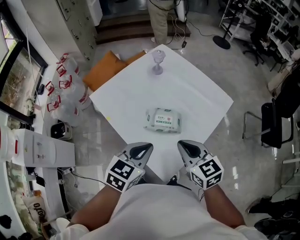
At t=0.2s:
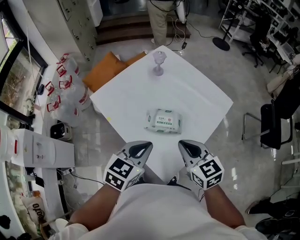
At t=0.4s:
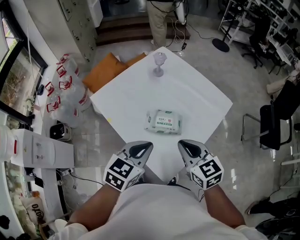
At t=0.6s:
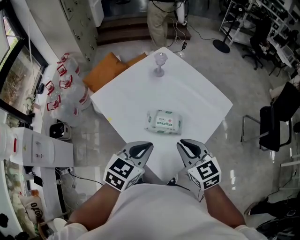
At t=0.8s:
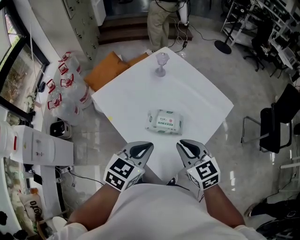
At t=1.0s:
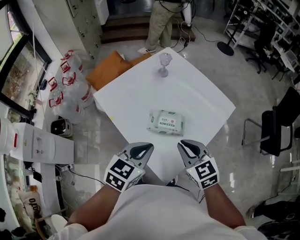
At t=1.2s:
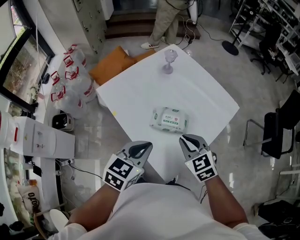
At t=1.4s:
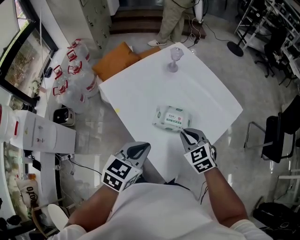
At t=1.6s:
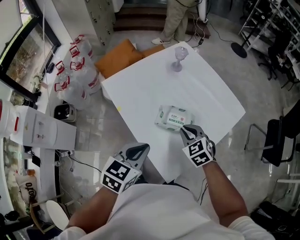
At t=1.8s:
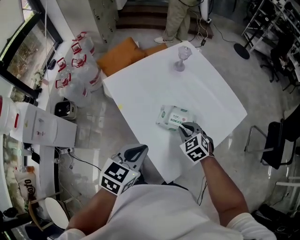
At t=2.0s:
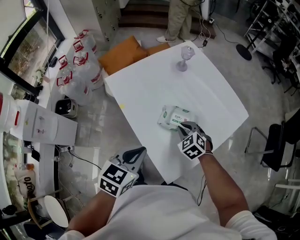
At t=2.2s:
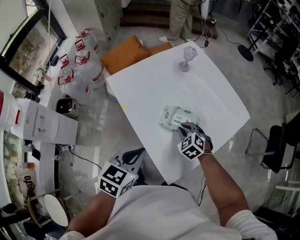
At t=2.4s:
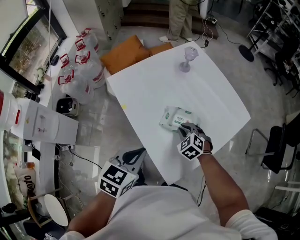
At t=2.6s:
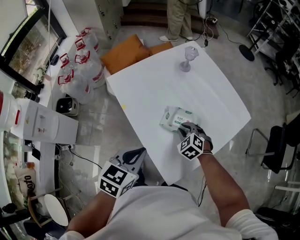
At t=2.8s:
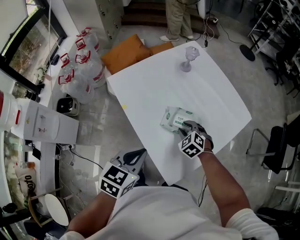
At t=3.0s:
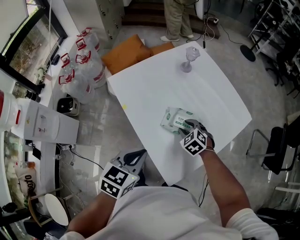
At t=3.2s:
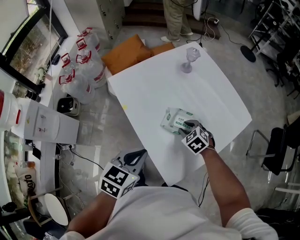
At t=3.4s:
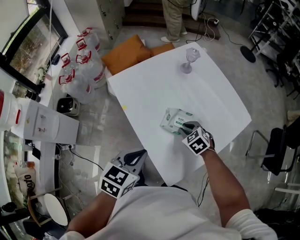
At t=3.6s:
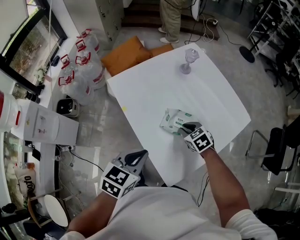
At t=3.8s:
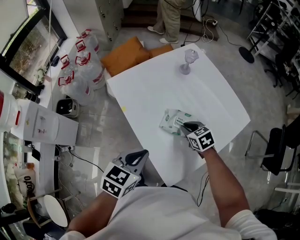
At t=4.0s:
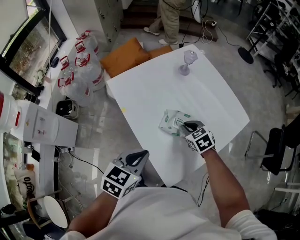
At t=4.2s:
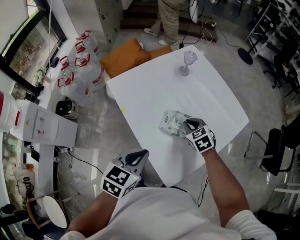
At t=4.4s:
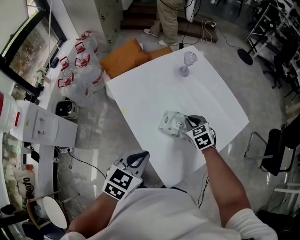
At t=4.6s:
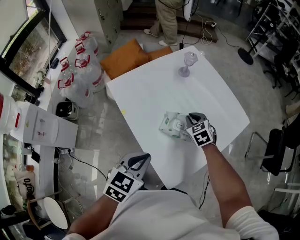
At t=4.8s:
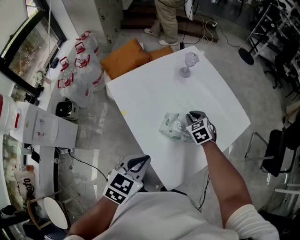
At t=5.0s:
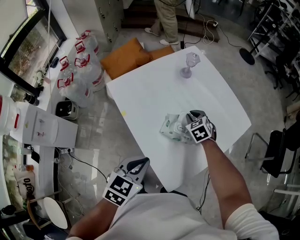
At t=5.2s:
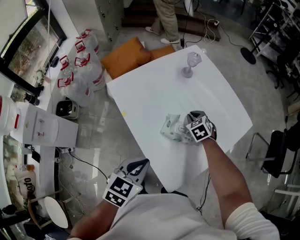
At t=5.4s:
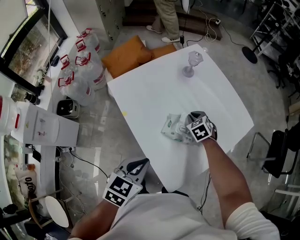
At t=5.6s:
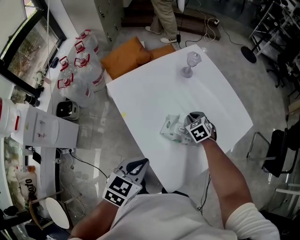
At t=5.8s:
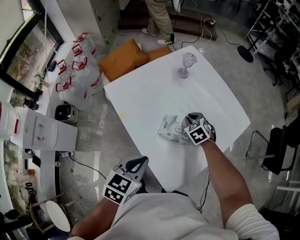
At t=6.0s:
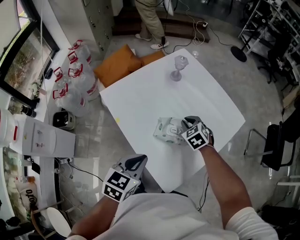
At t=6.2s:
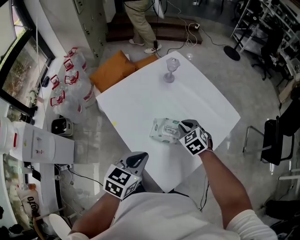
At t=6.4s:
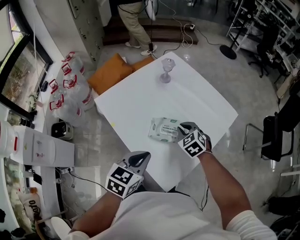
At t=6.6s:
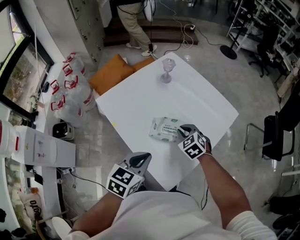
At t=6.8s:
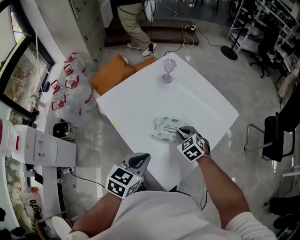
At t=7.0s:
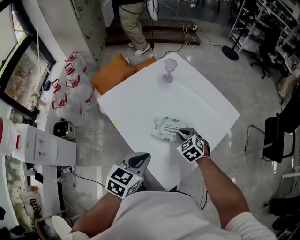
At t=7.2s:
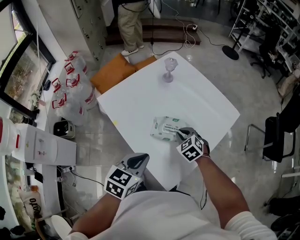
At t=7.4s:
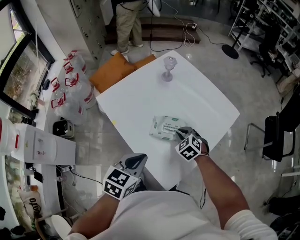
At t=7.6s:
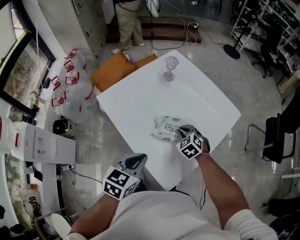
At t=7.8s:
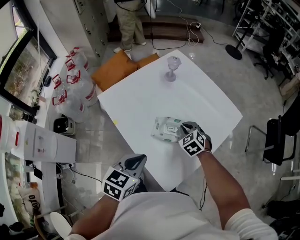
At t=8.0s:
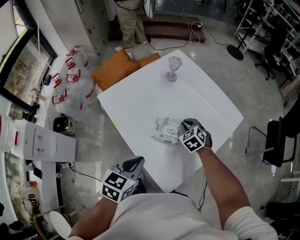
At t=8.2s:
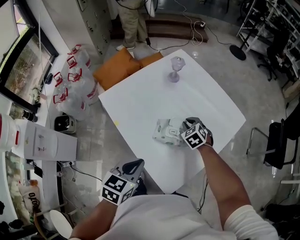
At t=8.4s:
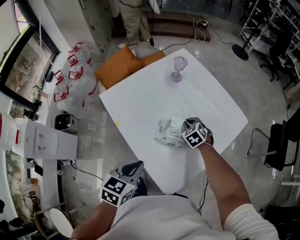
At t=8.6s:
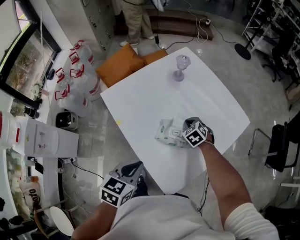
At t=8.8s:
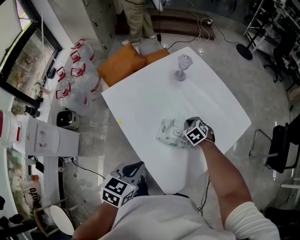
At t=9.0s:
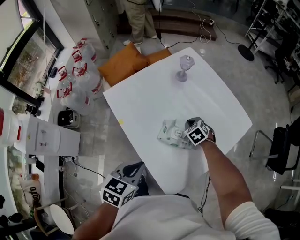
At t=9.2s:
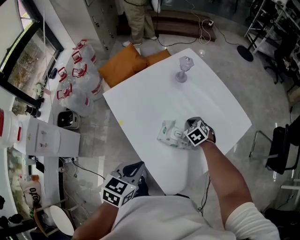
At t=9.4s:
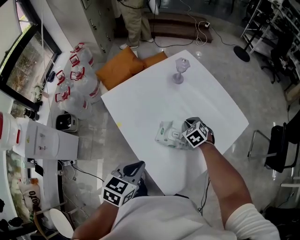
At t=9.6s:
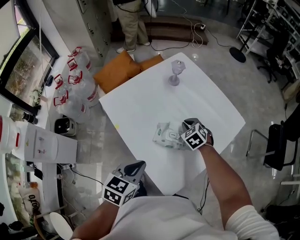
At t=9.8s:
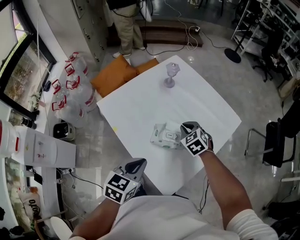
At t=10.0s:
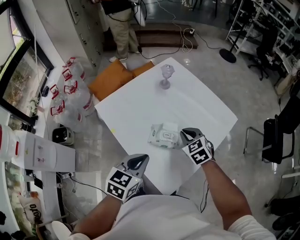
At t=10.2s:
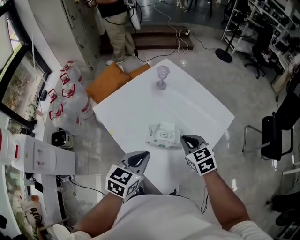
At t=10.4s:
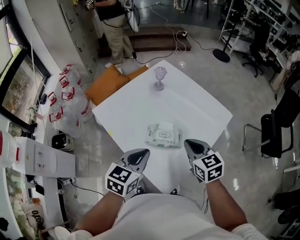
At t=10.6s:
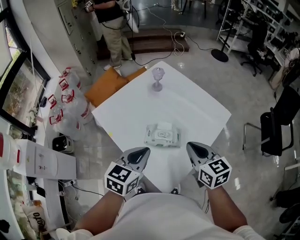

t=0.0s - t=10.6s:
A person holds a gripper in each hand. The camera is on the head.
t=0.0s - t=1.6s: The right gripper shifts approximately 15 cm downward and forward, and swivels roughly 30 degrees. Meanwhile the left gripper shifts about 5 cm to the left.
t=1.6s - t=3.0s: The right gripper is displaced downward by approximately 10 cm, and opens up.
t=3.0s - t=4.6s: The right gripper moves forward, roughly 5 cm, and closes up.
t=6.0s - t=7.6s: The right gripper heads backward, covering approximately 5 cm.
t=7.6s - t=9.0s: The right gripper heads forward and downward, covering about 10 cm.
t=9.0s - t=10.6s: The left gripper is displaced upward and to the right by approximately 10 cm. The right gripper is displaced upward and backward by some 30 cm, and points its fingers about 40 degrees further upward.

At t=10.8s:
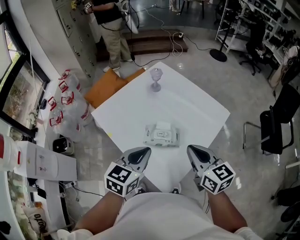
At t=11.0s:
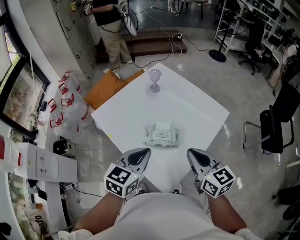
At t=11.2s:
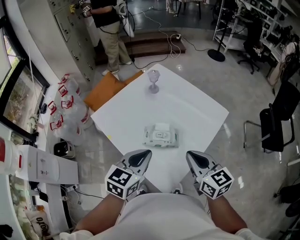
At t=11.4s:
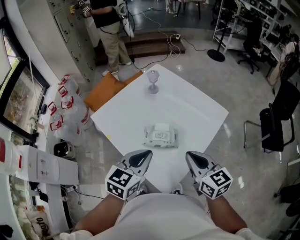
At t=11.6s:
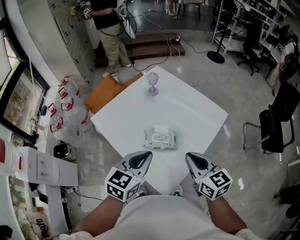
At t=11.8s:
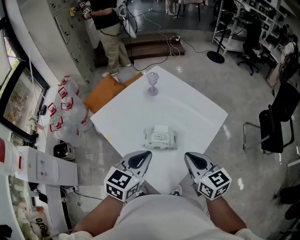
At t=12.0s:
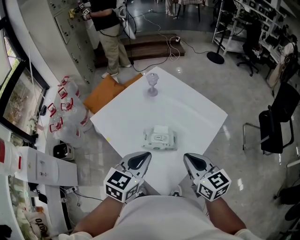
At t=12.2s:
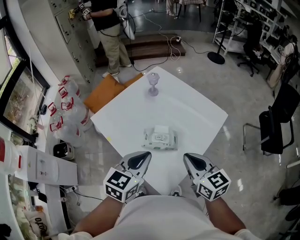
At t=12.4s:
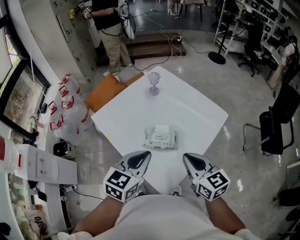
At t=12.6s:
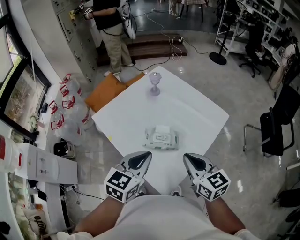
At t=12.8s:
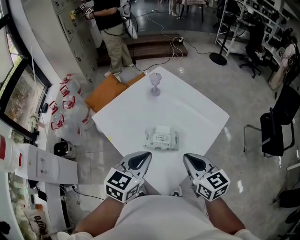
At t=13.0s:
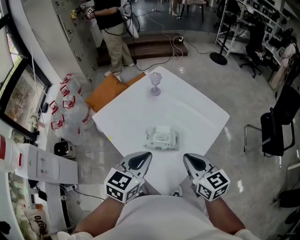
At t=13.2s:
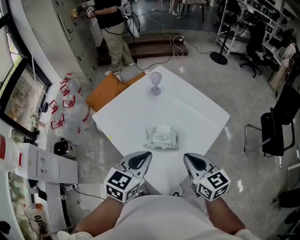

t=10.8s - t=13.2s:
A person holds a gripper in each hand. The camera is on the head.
t=10.8s - t=12.0s: There are only small adjustments of the grippers.
t=12.0s - t=13.2s: The two grippers keep their place.

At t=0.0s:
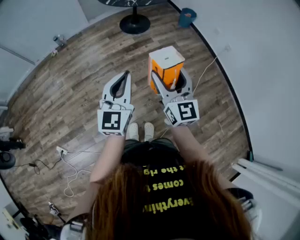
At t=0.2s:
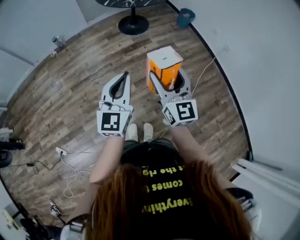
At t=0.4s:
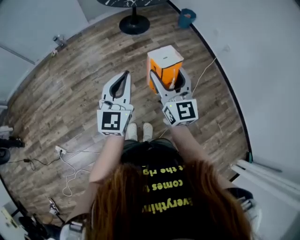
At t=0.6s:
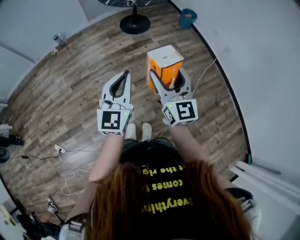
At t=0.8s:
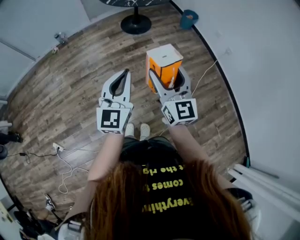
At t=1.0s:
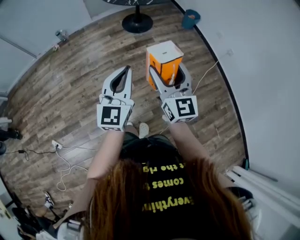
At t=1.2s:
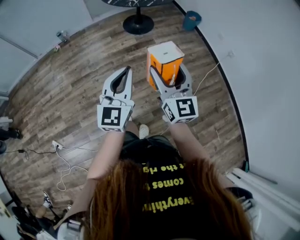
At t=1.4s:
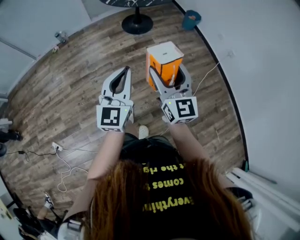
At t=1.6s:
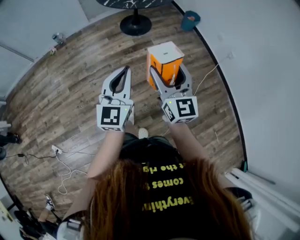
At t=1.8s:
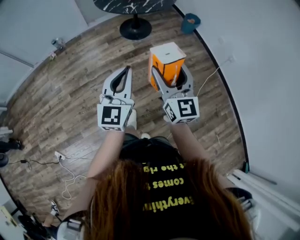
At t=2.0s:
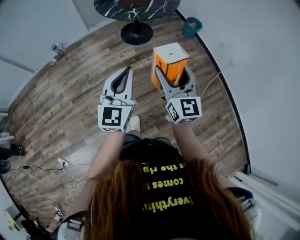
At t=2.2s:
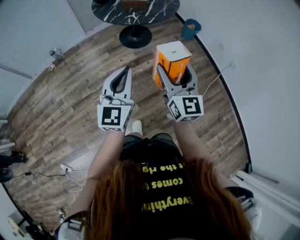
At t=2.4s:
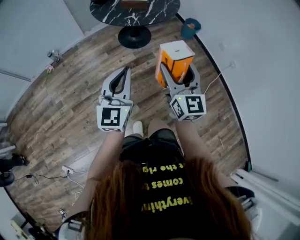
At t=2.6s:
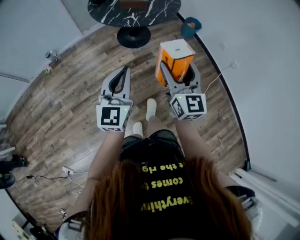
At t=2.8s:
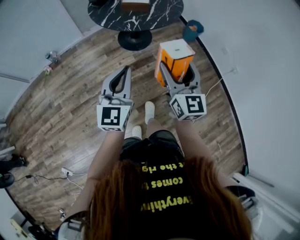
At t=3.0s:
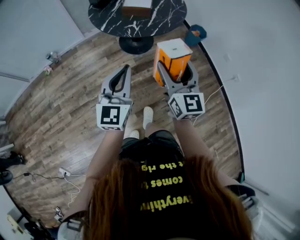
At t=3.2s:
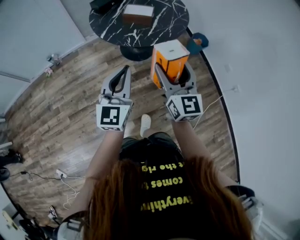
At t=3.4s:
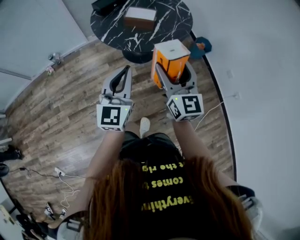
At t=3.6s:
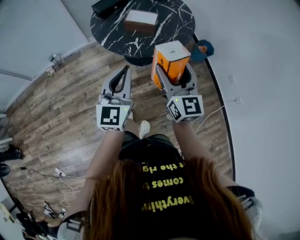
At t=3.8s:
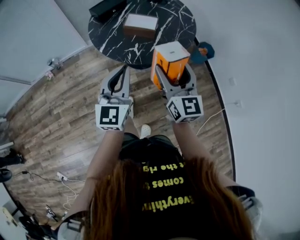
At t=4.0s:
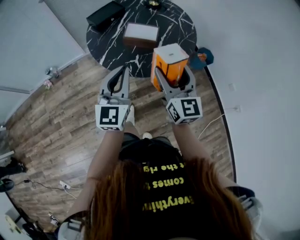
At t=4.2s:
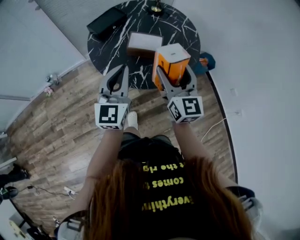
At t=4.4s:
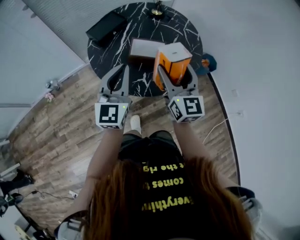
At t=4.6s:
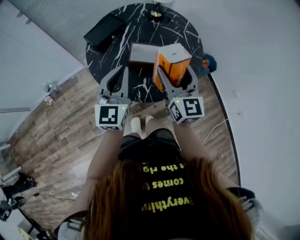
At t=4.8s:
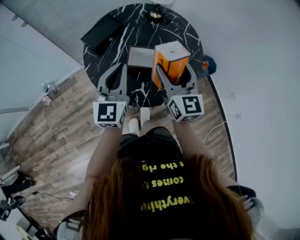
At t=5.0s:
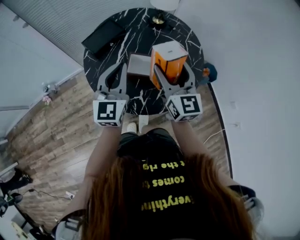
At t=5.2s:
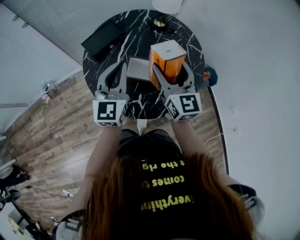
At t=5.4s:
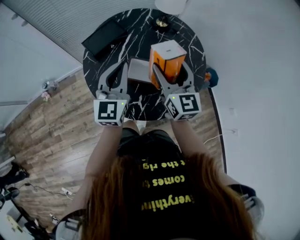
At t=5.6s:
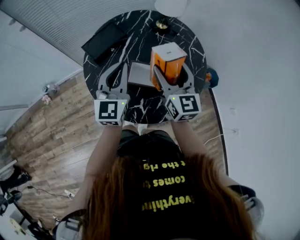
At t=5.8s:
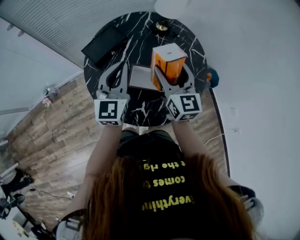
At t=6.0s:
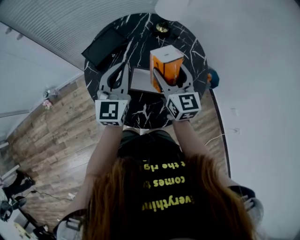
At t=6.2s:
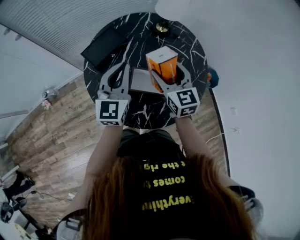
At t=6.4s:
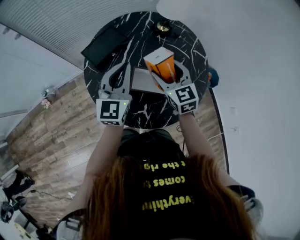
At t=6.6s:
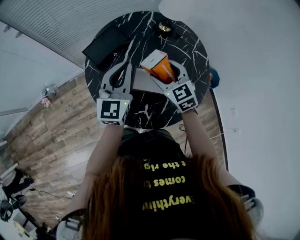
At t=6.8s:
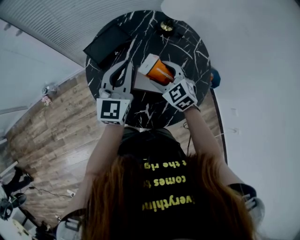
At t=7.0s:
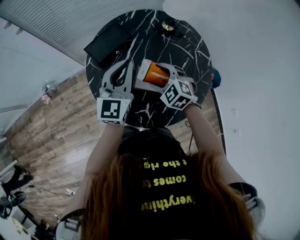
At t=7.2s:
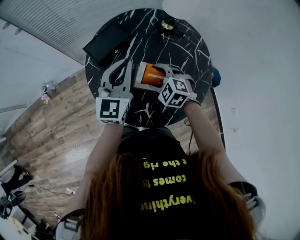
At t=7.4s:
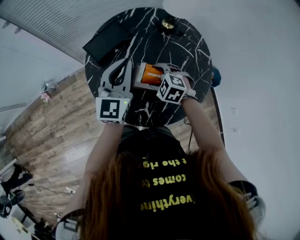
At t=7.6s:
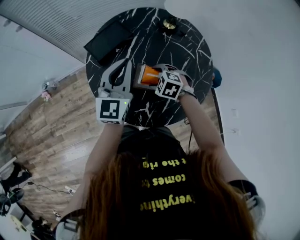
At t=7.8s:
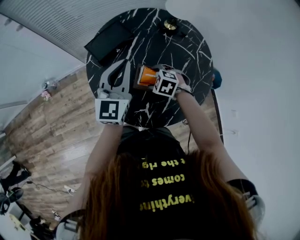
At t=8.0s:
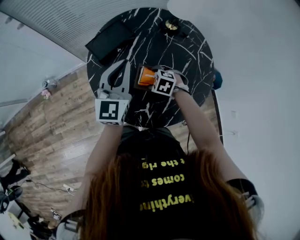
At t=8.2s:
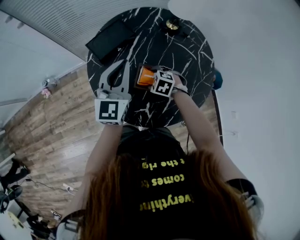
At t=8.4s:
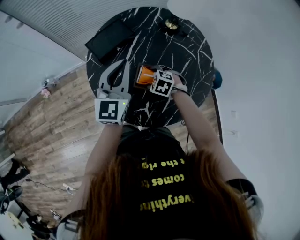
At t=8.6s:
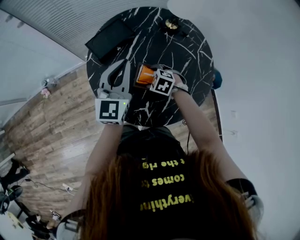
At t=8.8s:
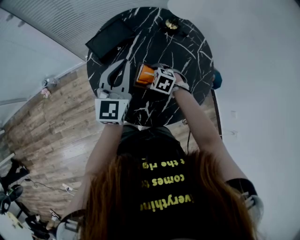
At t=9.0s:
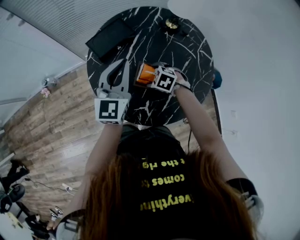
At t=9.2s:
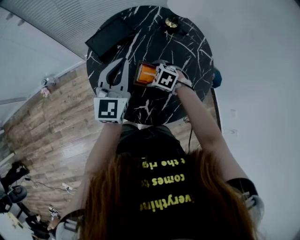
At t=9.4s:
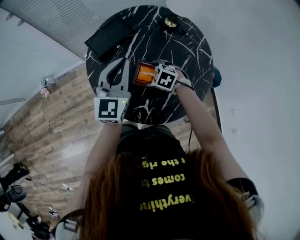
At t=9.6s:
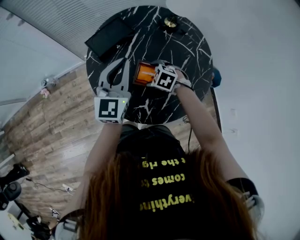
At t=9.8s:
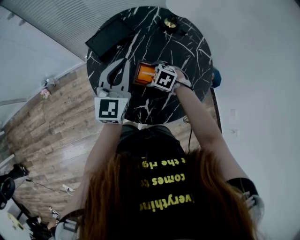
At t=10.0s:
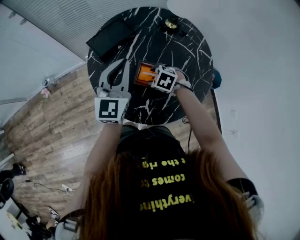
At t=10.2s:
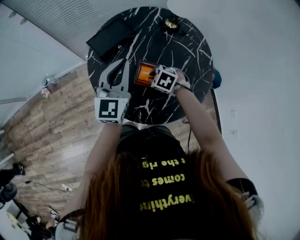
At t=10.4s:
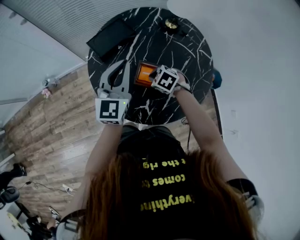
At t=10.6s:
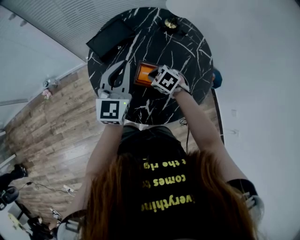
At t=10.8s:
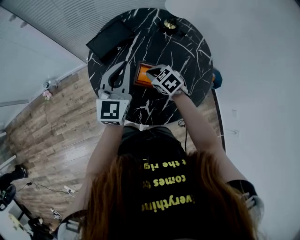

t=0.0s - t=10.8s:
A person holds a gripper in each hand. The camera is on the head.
t=0.0s - t=1.6s: Both grippers travel together forward, roughly 10 cm.
t=1.6s - t=3.0s: The two grippers go some 35 cm forward.
t=3.0s - t=4.6s: The two grippers travel together, forward, some 40 cm.
t=4.6s - t=6.2s: Both grippers travel together forward, some 20 cm.
t=6.2s - t=7.8s: The right gripper moves downward, about 20 cm, and tips its fingers downward by about 50 degrees.
t=7.8s - t=9.2s: There are only small adjustments of the grippers.
t=9.2s - t=10.8s: The right gripper ends up some 5 cm from where it was, rotates roughly 20 degrees, and closes.
